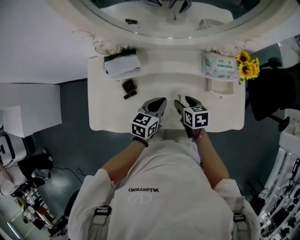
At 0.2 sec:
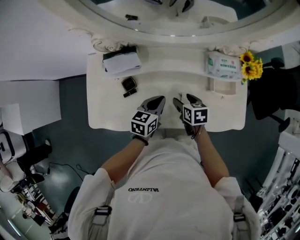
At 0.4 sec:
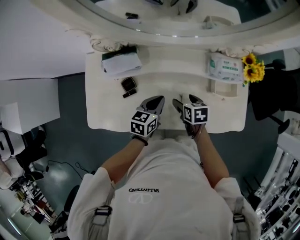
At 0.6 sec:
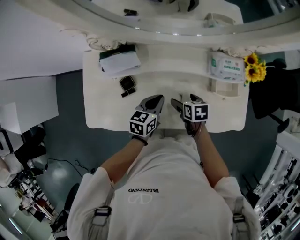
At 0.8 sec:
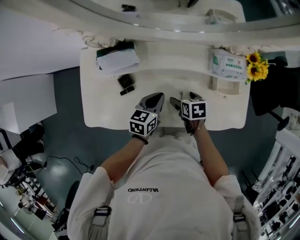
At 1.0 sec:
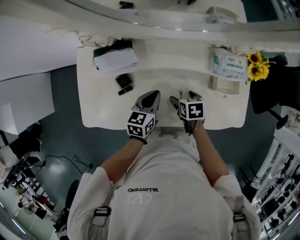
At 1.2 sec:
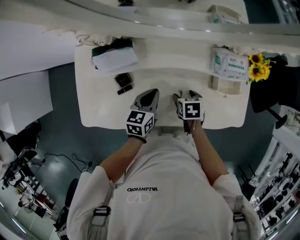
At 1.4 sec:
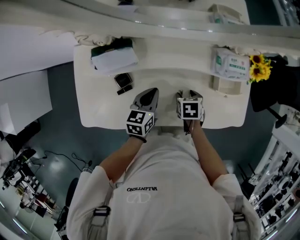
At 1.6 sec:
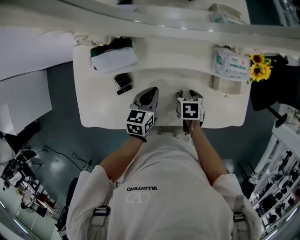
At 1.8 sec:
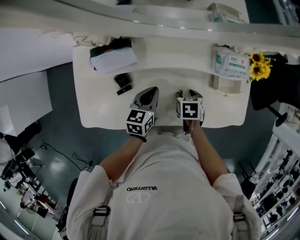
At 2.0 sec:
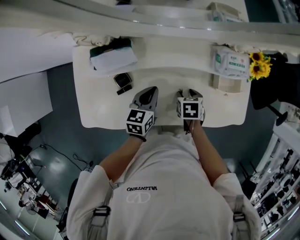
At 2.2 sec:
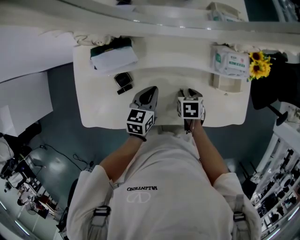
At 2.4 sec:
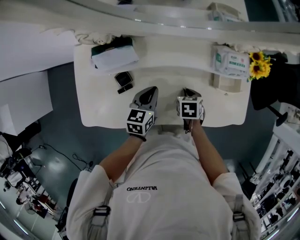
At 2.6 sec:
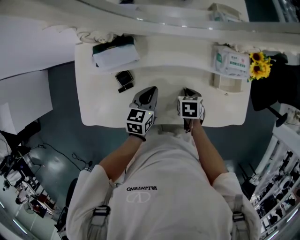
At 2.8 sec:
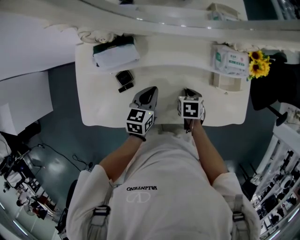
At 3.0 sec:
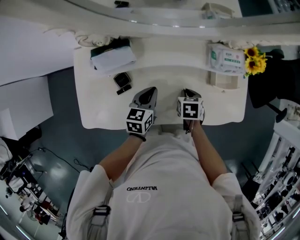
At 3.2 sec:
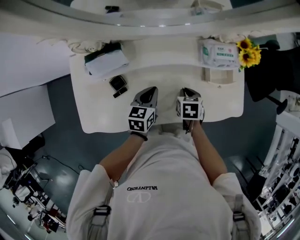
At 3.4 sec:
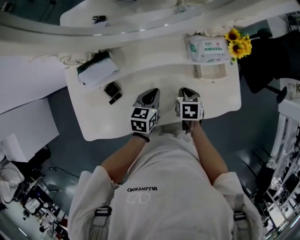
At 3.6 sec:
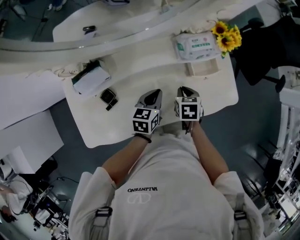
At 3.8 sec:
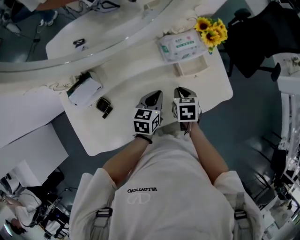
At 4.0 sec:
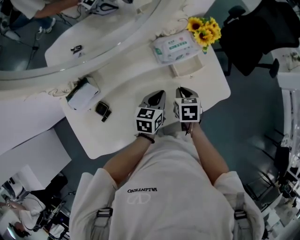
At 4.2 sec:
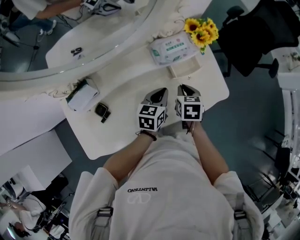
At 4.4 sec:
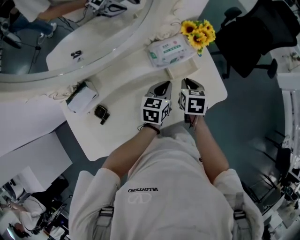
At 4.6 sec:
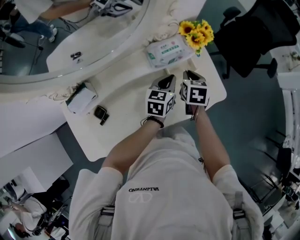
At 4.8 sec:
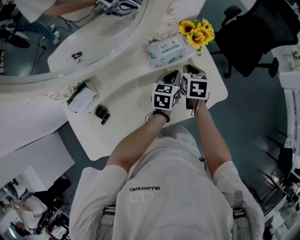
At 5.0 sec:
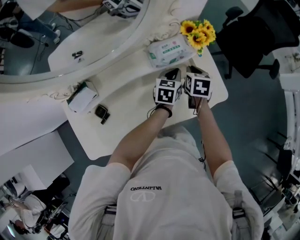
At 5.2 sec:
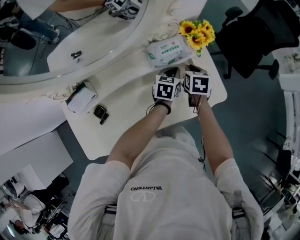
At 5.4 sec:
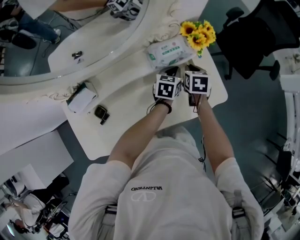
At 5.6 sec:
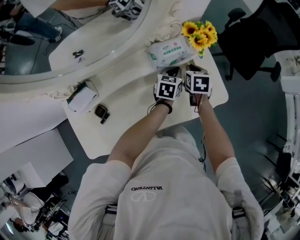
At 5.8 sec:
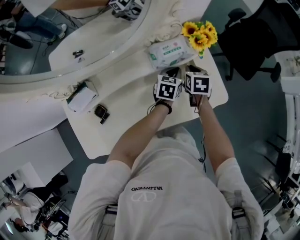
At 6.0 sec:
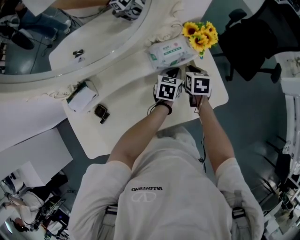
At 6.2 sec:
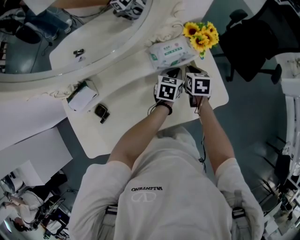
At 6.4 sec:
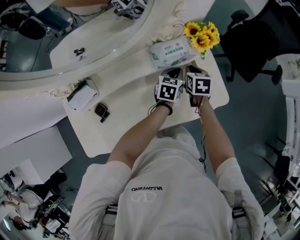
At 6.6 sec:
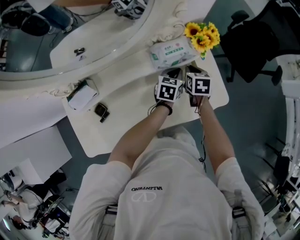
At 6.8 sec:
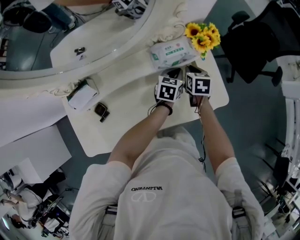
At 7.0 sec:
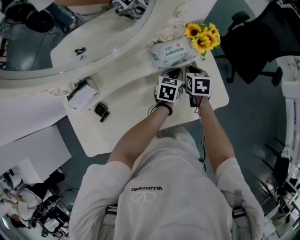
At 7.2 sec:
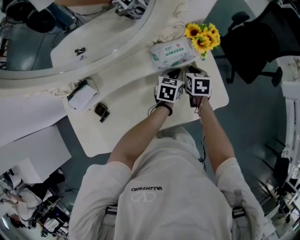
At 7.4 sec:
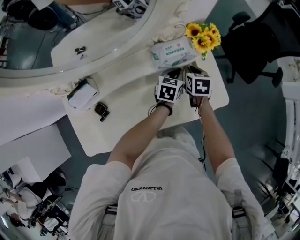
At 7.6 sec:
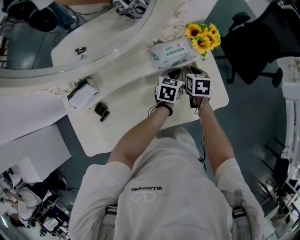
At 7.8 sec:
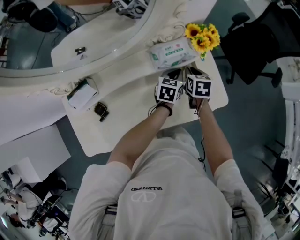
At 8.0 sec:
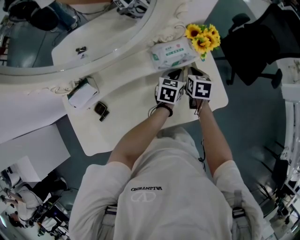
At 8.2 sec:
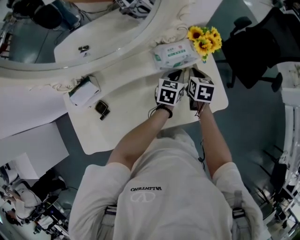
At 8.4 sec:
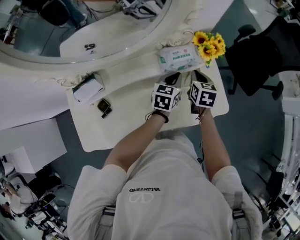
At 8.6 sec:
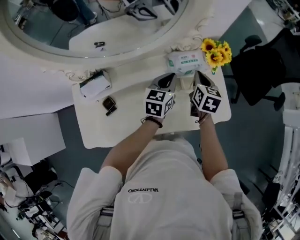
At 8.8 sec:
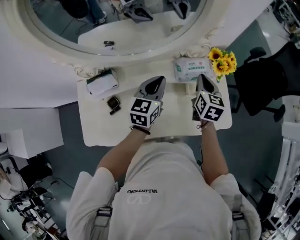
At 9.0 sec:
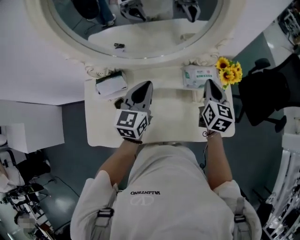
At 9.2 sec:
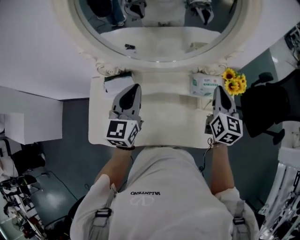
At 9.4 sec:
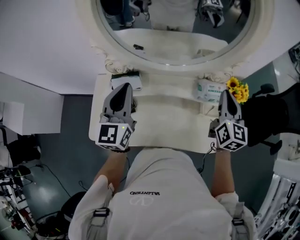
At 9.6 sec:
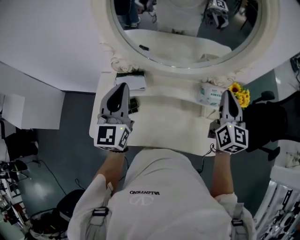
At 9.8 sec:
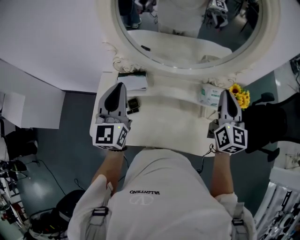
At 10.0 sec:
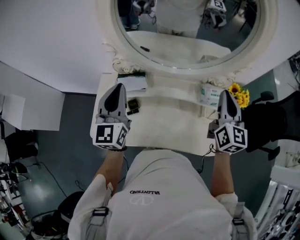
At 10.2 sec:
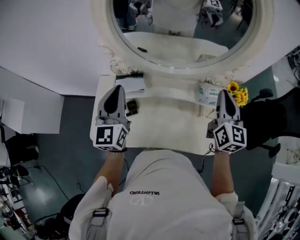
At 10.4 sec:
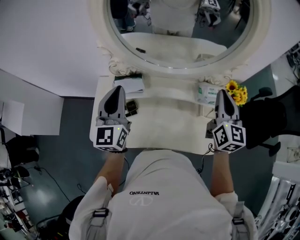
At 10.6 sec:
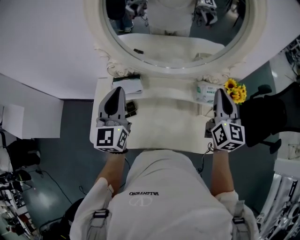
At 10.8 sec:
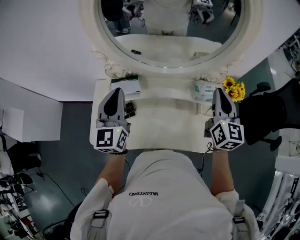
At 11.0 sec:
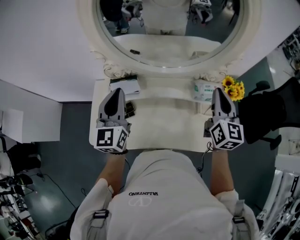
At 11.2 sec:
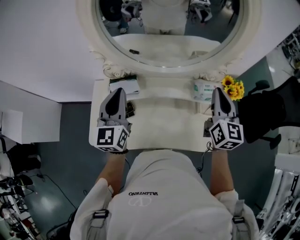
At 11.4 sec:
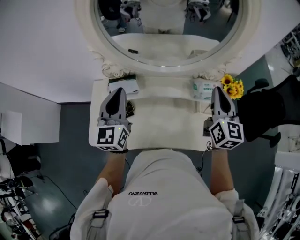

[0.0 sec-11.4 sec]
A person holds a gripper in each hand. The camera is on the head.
0.0 sec to 1.4 sec: The left gripper changes place by about 10 cm; the right gripper travels downward by some 5 cm, turns by about 30 degrees, and opens and closes again.
1.4 sec to 2.8 sec: The right gripper closes.
2.8 sec to 4.2 sec: The right gripper is displaced to the right and upward by roughly 15 cm, and turns by about 30 degrees. The left gripper shifts approximately 20 cm to the right, and swivels approximately 30 degrees.
4.2 sec to 5.6 sec: The left gripper travels forward and to the right by roughly 15 cm, while the right gripper travels forward by approximately 15 cm.
5.6 sec to 7.2 sec: Neither gripper changes place.
7.2 sec to 8.6 sec: The right gripper shifts about 10 cm upward. Meanwhile the left gripper is displaced upward and to the left by some 15 cm.
8.6 sec to 10.0 sec: The right gripper goes some 20 cm upward, and angles its fingers upward, by some 30 degrees. The left gripper moves about 40 cm, and changes its angle by some 50 degrees.
10.0 sec to 11.4 sec: The grippers make only small movements.

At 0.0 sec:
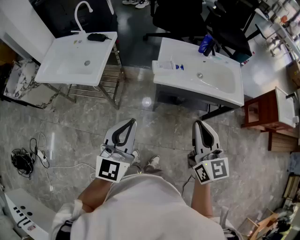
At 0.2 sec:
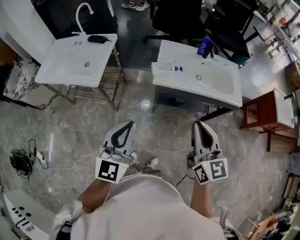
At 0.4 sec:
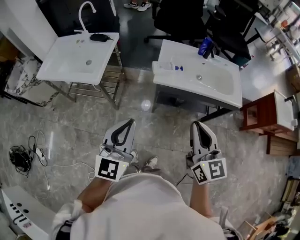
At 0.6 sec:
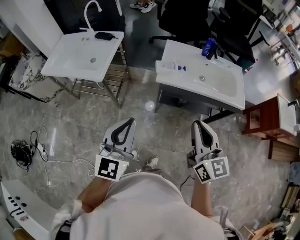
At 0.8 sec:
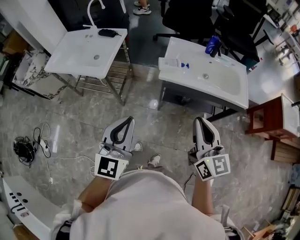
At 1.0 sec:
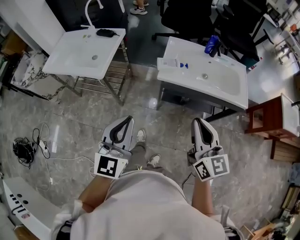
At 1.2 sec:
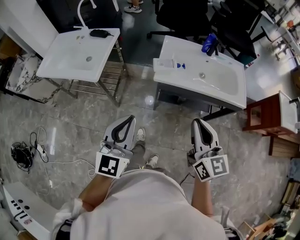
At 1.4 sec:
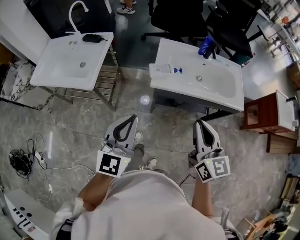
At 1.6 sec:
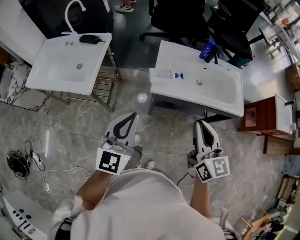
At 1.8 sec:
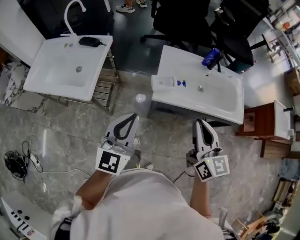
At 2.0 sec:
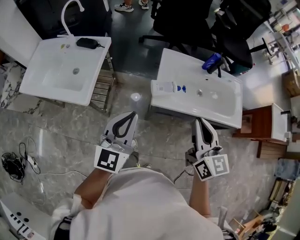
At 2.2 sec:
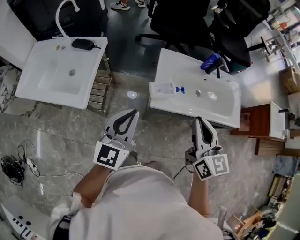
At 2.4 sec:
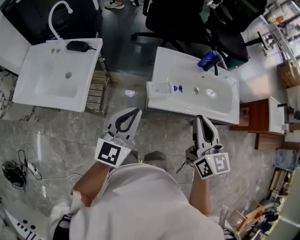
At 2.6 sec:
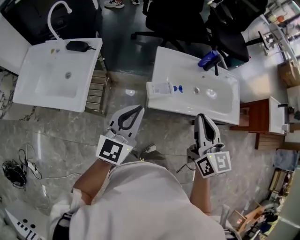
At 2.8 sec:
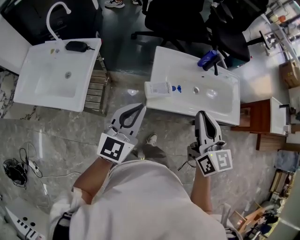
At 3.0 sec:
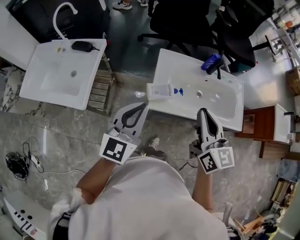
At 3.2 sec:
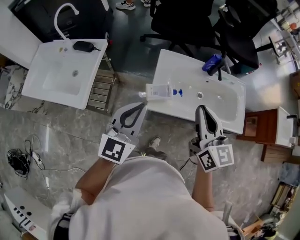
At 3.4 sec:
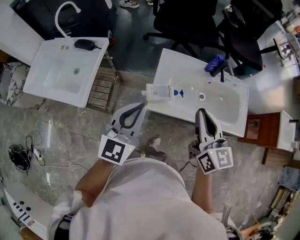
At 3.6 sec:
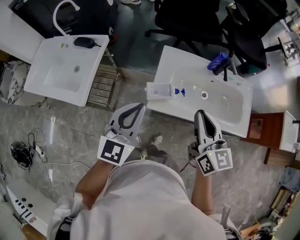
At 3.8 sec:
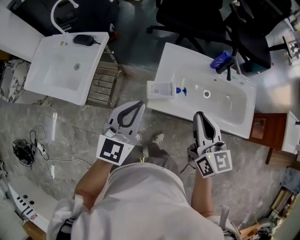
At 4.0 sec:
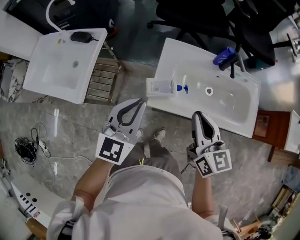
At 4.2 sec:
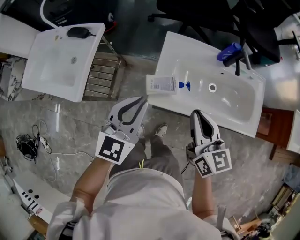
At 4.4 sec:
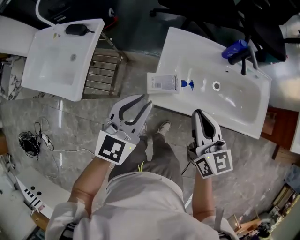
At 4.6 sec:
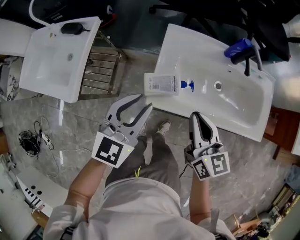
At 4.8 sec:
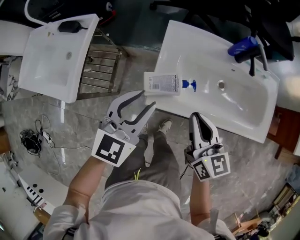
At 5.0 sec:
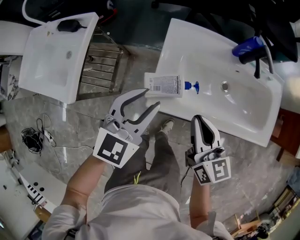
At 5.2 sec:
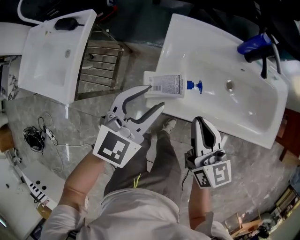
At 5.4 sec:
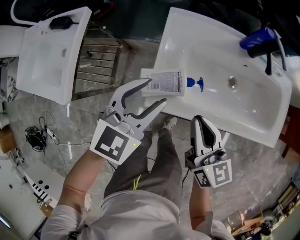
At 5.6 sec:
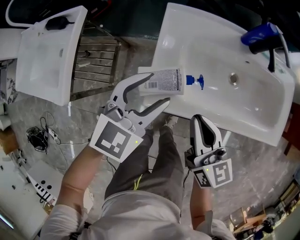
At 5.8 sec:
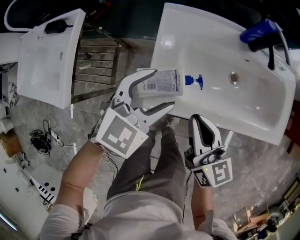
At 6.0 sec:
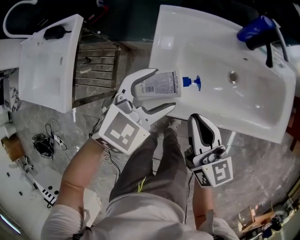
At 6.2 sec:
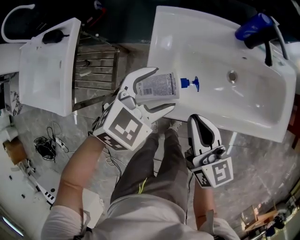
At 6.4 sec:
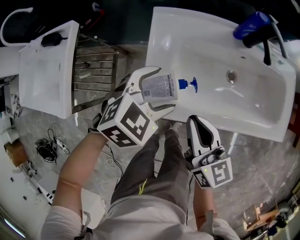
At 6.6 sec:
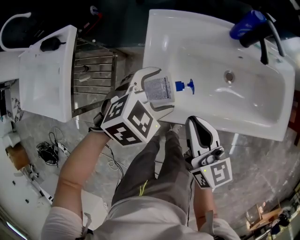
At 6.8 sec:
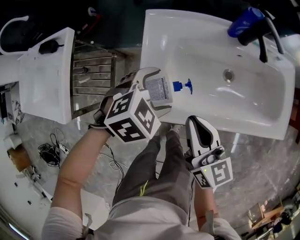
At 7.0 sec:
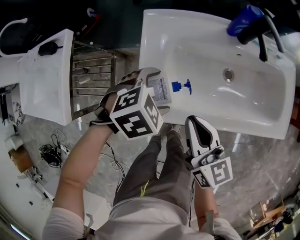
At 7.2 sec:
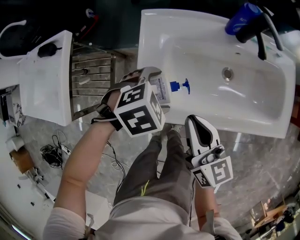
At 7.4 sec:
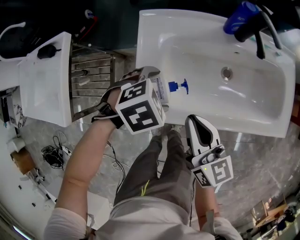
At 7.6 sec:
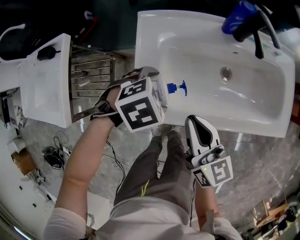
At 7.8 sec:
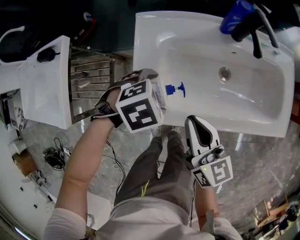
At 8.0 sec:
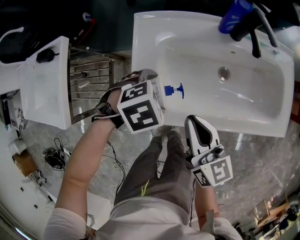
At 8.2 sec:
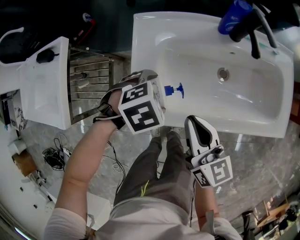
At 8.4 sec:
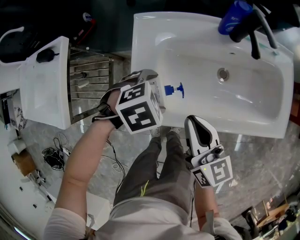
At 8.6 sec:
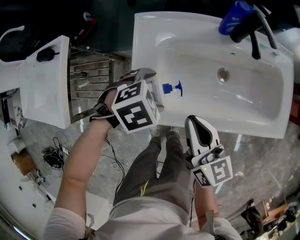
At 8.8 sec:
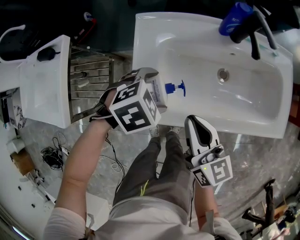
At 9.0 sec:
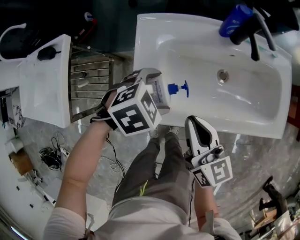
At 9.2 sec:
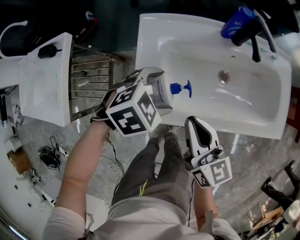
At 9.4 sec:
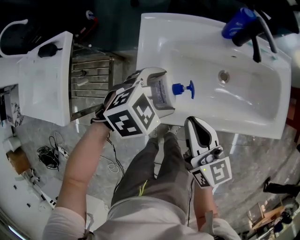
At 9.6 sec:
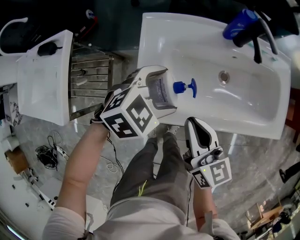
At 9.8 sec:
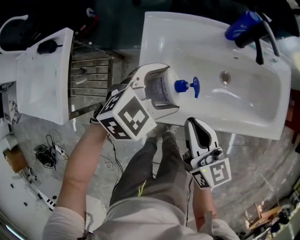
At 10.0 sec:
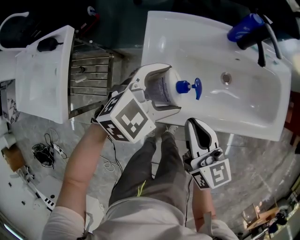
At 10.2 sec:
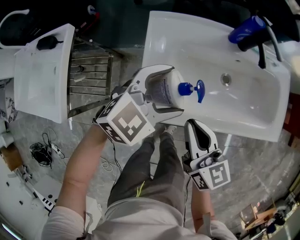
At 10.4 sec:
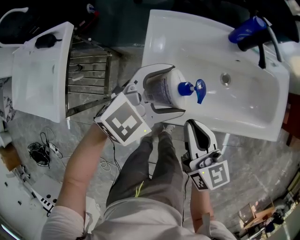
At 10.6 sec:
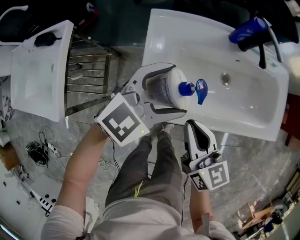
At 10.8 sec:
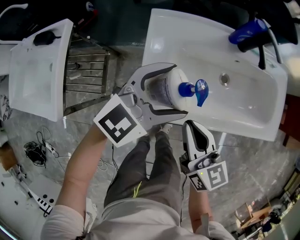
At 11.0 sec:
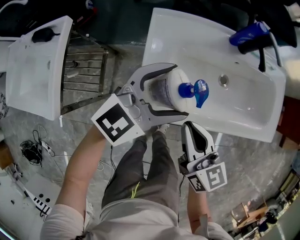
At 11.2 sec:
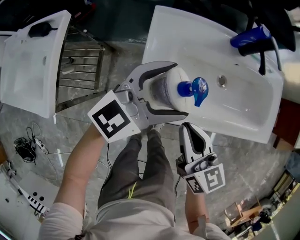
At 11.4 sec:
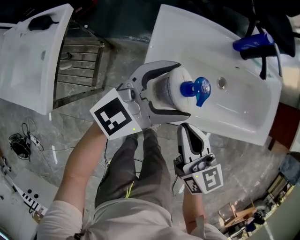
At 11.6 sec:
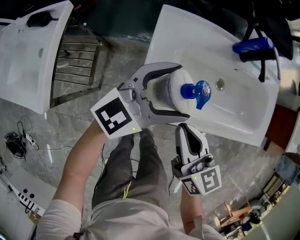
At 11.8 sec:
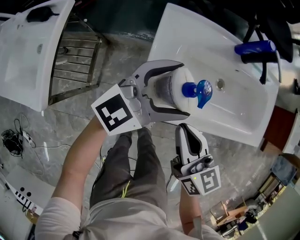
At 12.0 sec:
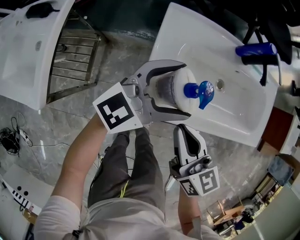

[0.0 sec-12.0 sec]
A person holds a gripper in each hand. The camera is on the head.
0.0 sec to 1.6 sec: Both grippers travel together forward, some 10 cm.
1.6 sec to 3.0 sec: Both grippers move forward, roughly 15 cm.
3.0 sec to 4.4 sec: The left gripper goes about 15 cm downward, forward and to the right. The right gripper heads downward and forward, covering roughly 15 cm.
4.4 sec to 6.0 sec: The left gripper travels downward, forward and to the right by about 20 cm, changes its angle by some 30 degrees, and opens its fingers, while the right gripper moves downward, about 15 cm.
6.0 sec to 7.6 sec: The left gripper is displaced downward by roughly 10 cm, and points its fingers about 40 degrees further downward.
7.6 sec to 9.0 sec: The grippers move only a little.
9.0 sec to 10.4 sec: The left gripper travels upward by approximately 10 cm, and angles its fingers upward, by about 40 degrees.
10.4 sec to 12.0 sec: The right gripper is displaced to the left by roughly 5 cm. Meanwhile the left gripper turns by about 30 degrees.
